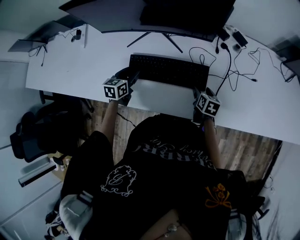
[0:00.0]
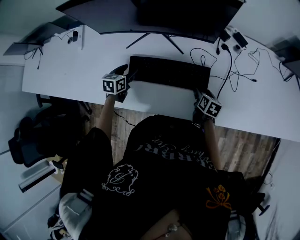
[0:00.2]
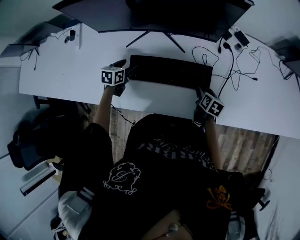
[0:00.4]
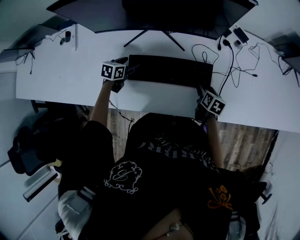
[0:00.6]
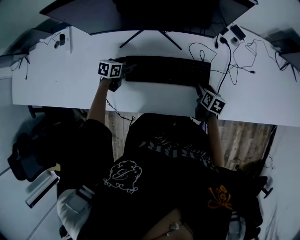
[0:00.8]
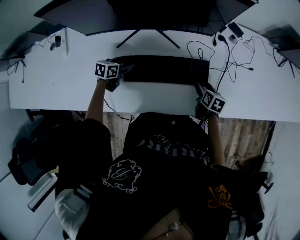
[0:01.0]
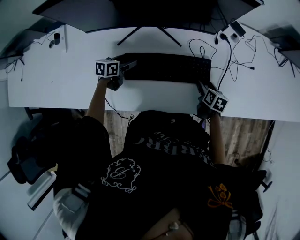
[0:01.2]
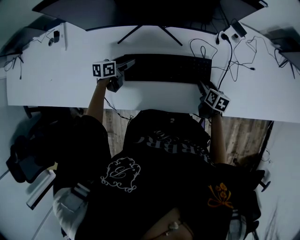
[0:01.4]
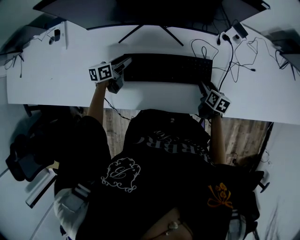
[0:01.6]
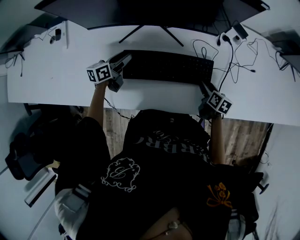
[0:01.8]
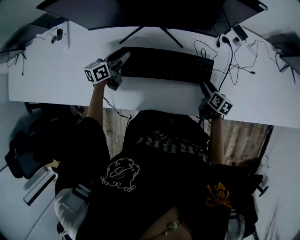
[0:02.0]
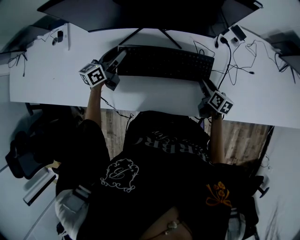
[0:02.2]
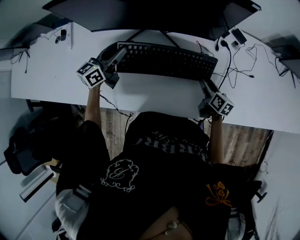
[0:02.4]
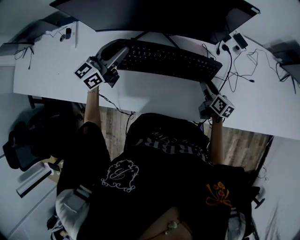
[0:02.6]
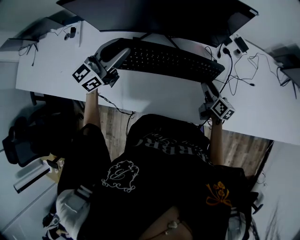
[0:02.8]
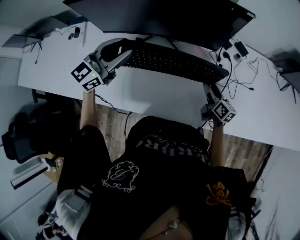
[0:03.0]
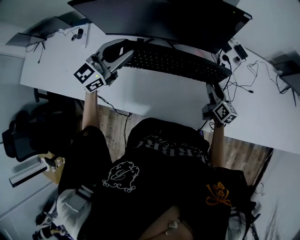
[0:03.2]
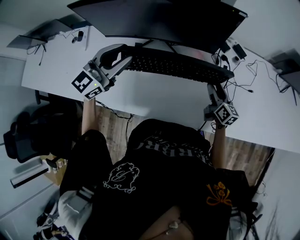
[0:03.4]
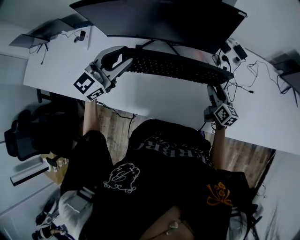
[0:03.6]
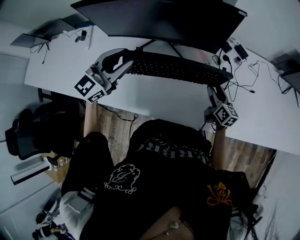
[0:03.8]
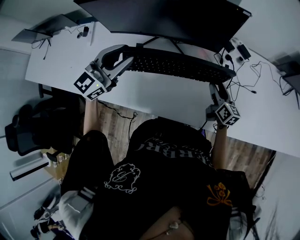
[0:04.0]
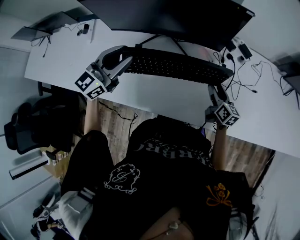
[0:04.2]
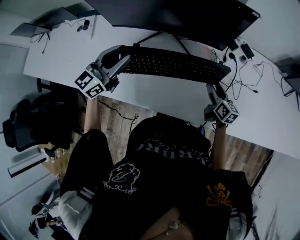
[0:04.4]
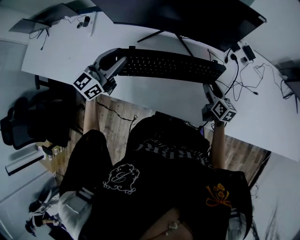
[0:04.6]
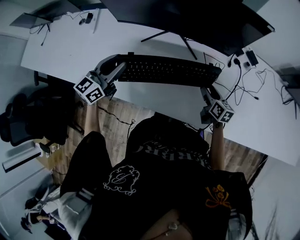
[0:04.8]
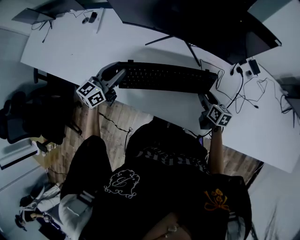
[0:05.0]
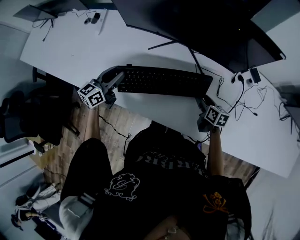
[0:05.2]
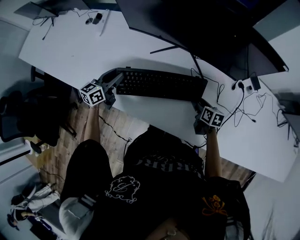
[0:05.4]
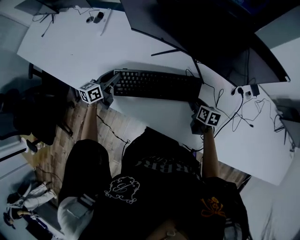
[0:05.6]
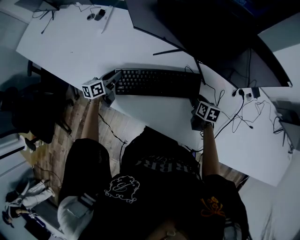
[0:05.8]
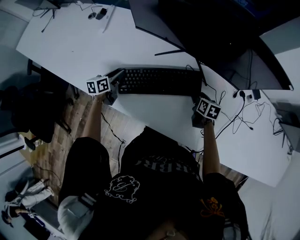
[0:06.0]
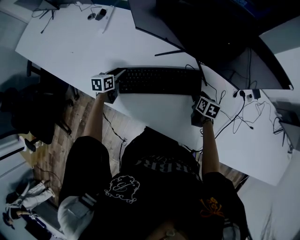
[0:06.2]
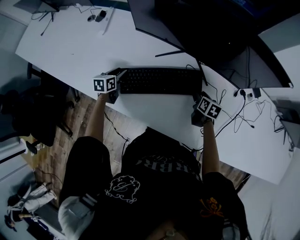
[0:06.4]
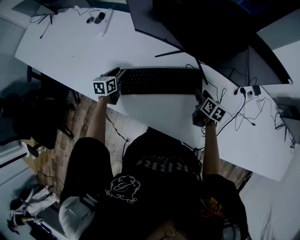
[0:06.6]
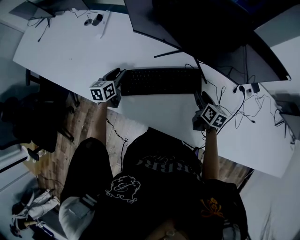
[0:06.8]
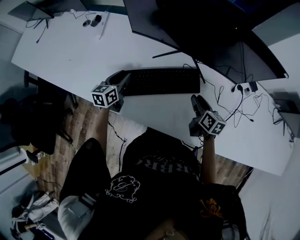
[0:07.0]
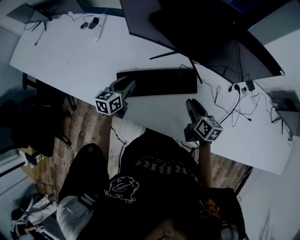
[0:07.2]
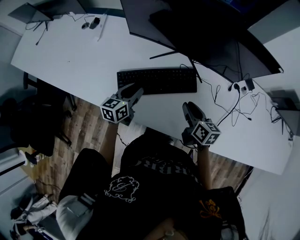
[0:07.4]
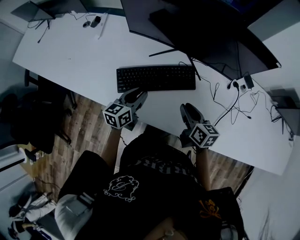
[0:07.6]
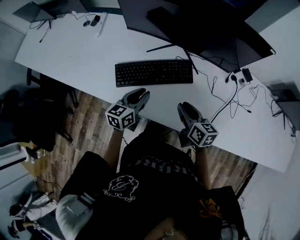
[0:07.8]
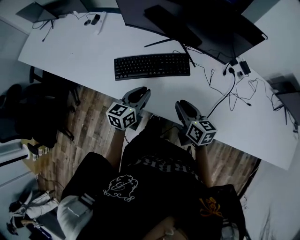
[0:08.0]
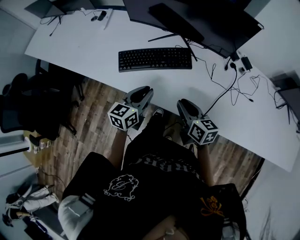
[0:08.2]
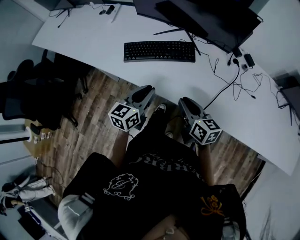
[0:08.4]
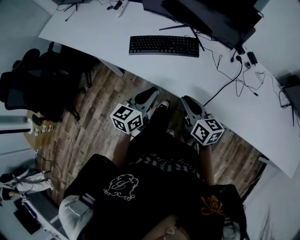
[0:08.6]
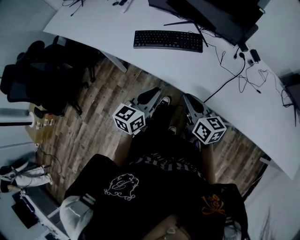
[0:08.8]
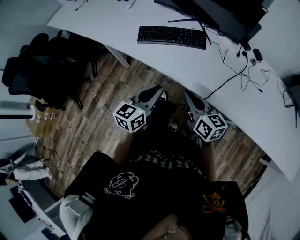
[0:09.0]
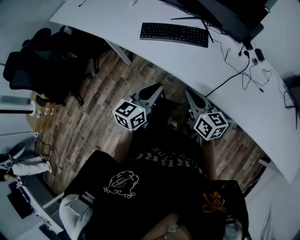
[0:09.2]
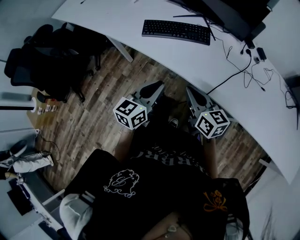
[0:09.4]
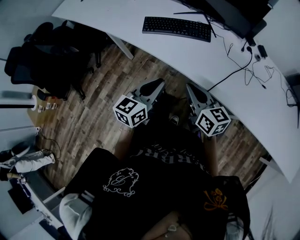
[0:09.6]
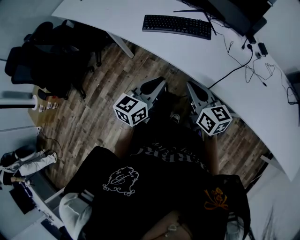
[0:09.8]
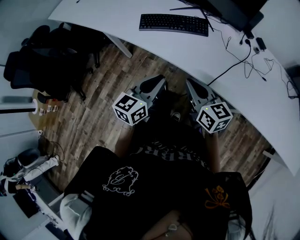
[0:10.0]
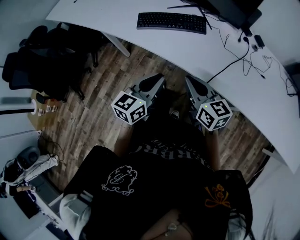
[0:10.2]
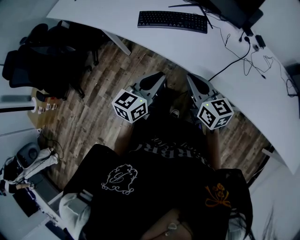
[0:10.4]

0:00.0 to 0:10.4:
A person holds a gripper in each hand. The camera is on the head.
0:00.0 to 0:01.4: The left gripper heads downward, forward and to the left, covering approximately 10 cm, and rotates roughly 30 degrees.
0:01.4 to 0:03.0: The right gripper is displaced upward by approximately 10 cm, and points its fingers approximately 30 degrees further upward. Meanwhile the left gripper travels upward by some 30 cm, rolls clockwise, seen from behind, by some 50 degrees, and closes.
0:03.0 to 0:04.4: The left gripper travels backward by some 5 cm.
0:04.4 to 0:06.0: The right gripper goes some 20 cm to the left, forward and downward, and turns by about 30 degrees; the left gripper heads downward and to the left, covering about 35 cm, and turns by about 50 degrees.
0:06.0 to 0:07.4: The right gripper goes approximately 20 cm upward, backward and to the left, and turns by approximately 20 degrees, while the left gripper heads to the right, upward and backward, covering about 15 cm.
0:07.4 to 0:09.0: The grippers both shift backward by approximately 35 cm. The right gripper swivels some 20 degrees.
0:09.0 to 0:10.4: There are only small adjustments of the grippers.

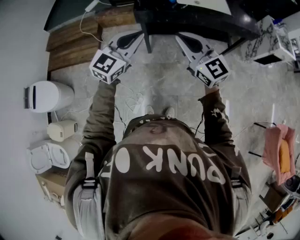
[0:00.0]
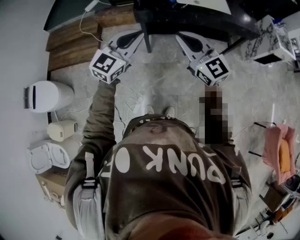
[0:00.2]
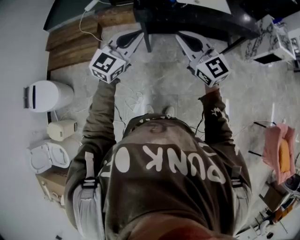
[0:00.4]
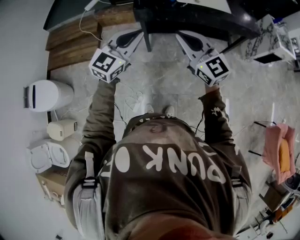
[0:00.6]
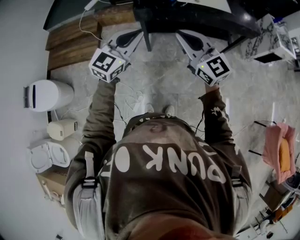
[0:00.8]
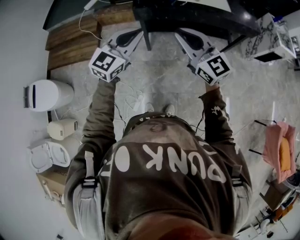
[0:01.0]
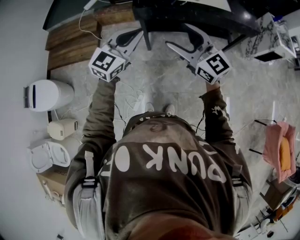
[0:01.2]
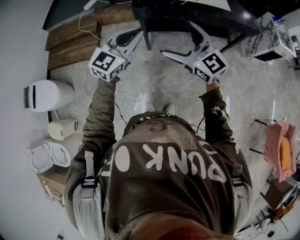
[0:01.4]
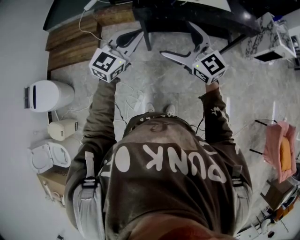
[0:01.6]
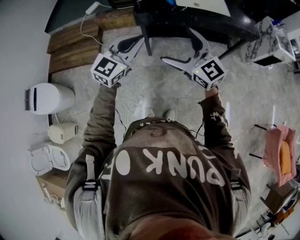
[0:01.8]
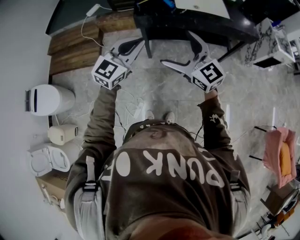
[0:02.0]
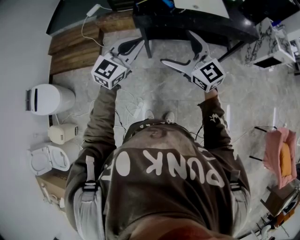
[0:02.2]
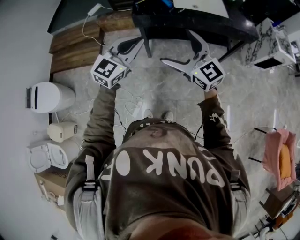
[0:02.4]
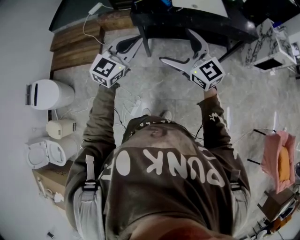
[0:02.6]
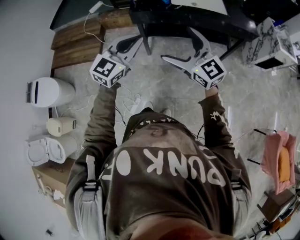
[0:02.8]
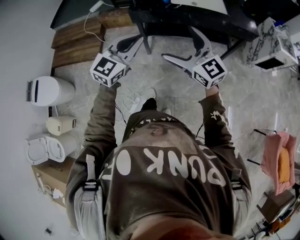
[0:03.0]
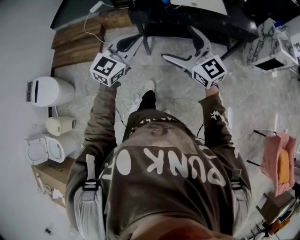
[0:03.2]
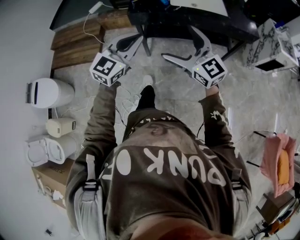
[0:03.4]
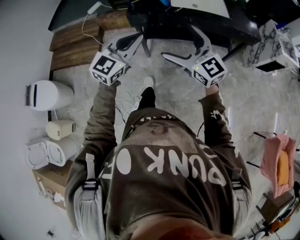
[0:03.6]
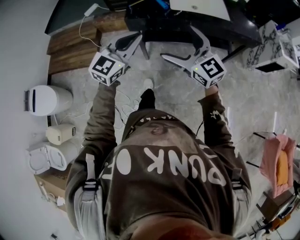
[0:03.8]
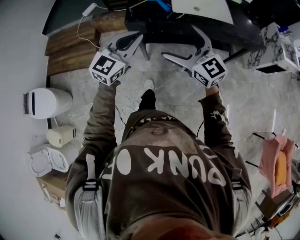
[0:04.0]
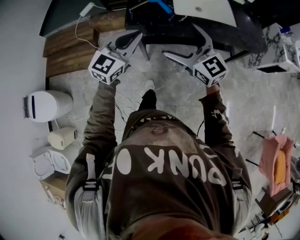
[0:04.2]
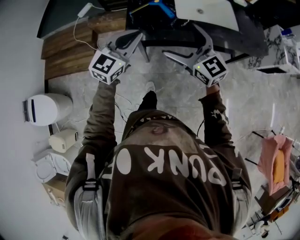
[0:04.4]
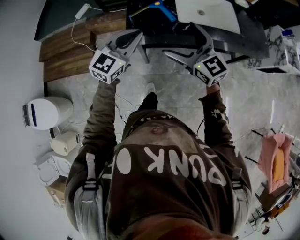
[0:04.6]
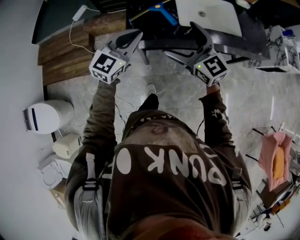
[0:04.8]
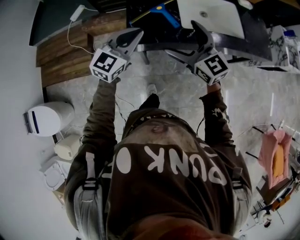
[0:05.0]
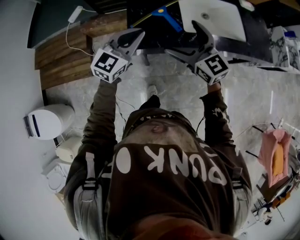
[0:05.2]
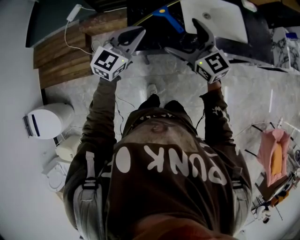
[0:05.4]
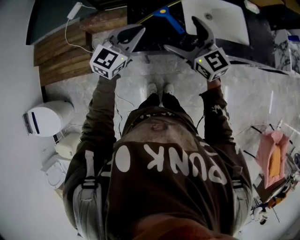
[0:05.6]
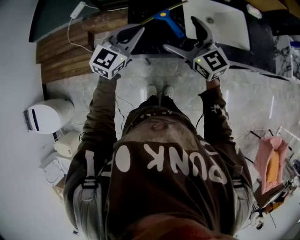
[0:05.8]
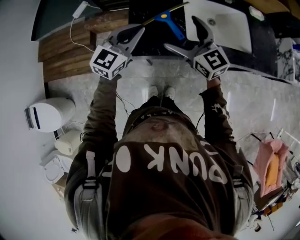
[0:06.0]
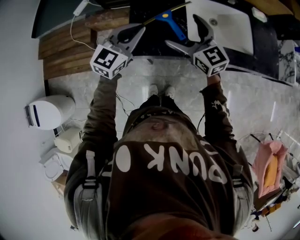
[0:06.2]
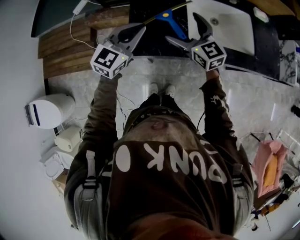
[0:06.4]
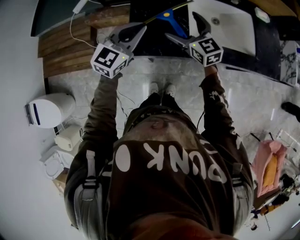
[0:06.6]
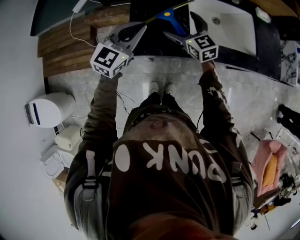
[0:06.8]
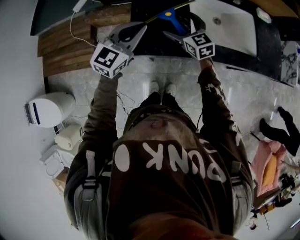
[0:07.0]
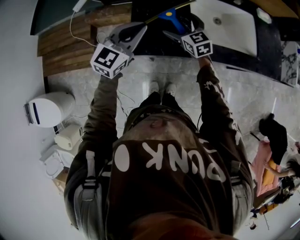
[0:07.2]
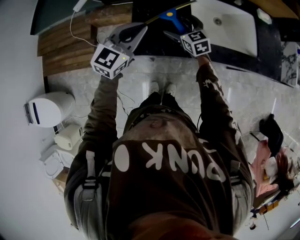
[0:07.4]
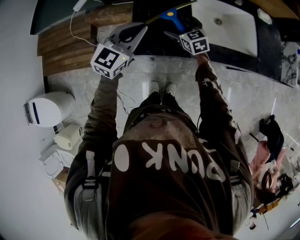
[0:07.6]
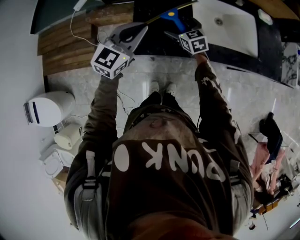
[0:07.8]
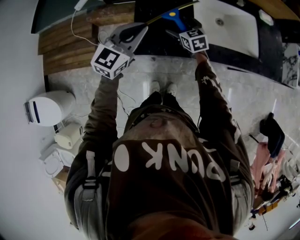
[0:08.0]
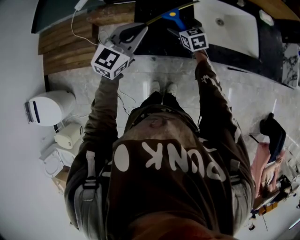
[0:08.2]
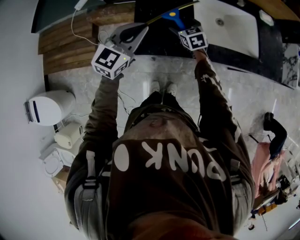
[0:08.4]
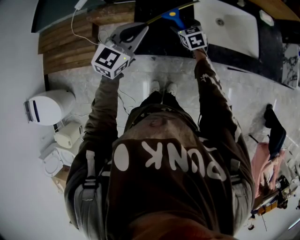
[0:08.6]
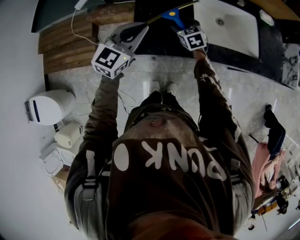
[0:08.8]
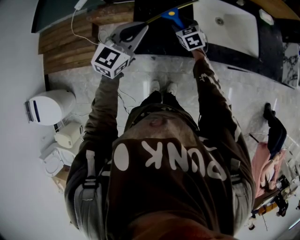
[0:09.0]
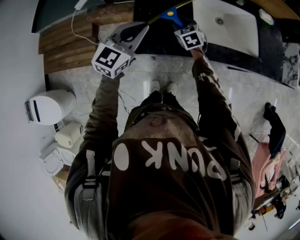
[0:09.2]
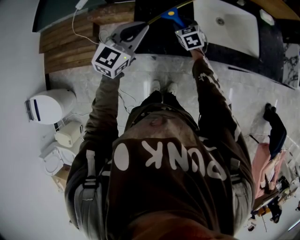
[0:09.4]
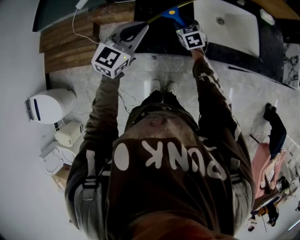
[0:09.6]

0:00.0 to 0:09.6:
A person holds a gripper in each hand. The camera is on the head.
0:00.0 to 0:01.6: The right gripper opens its fingers.
0:01.6 to 0:03.2: Both grippers travel together to the right, approximately 10 cm.
0:03.2 to 0:04.8: Both grippers move forward, approximately 35 cm.
0:04.8 to 0:06.4: The left gripper is displaced forward by approximately 15 cm; the right gripper travels forward and downward by approximately 20 cm.
0:06.4 to 0:08.0: The right gripper goes approximately 15 cm downward, and turns by some 20 degrees.
0:08.0 to 0:09.6: The right gripper closes up.

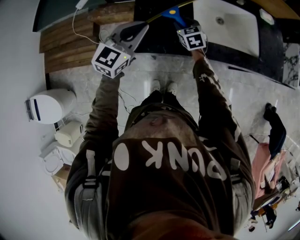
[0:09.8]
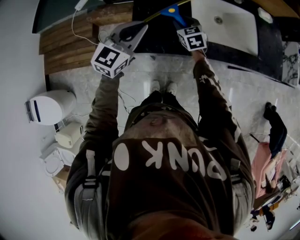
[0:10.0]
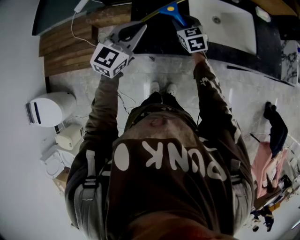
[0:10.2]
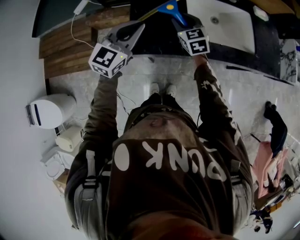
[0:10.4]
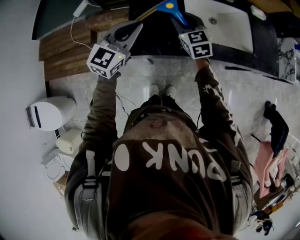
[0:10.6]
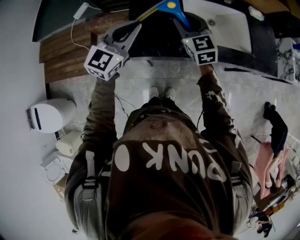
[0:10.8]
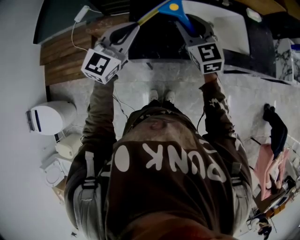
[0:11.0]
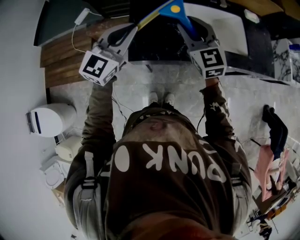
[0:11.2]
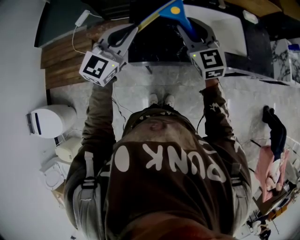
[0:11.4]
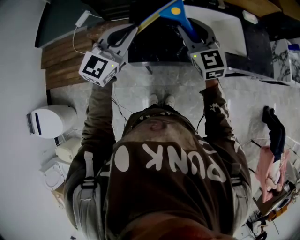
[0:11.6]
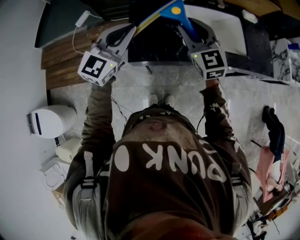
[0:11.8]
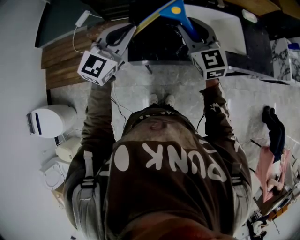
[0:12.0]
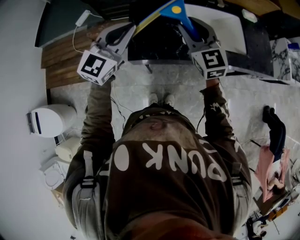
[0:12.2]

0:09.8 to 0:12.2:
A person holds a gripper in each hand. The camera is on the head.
0:09.8 to 0:11.0: The right gripper goes about 25 cm upward, and rotates approximately 30 degrees. Meanwhile the left gripper moves upward, some 10 cm.
0:11.0 to 0:12.2: There are only small adjustments of the grippers.

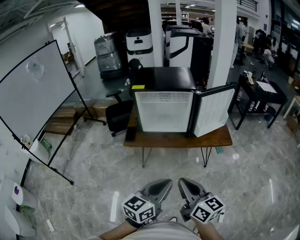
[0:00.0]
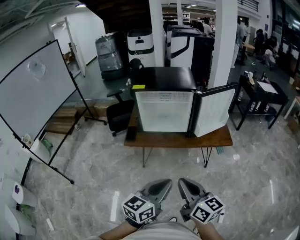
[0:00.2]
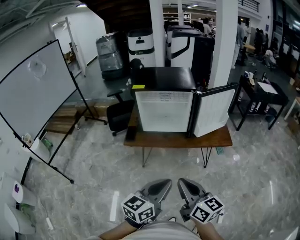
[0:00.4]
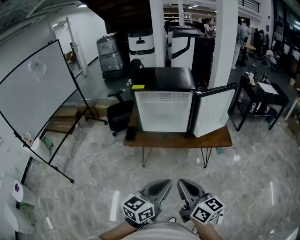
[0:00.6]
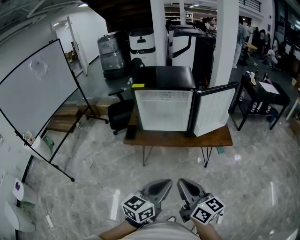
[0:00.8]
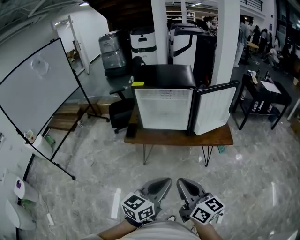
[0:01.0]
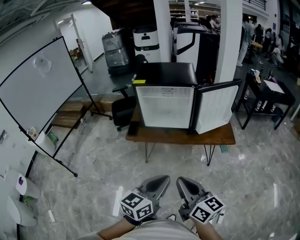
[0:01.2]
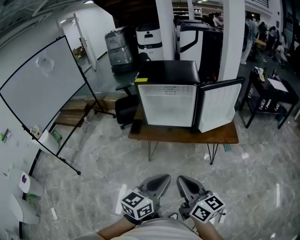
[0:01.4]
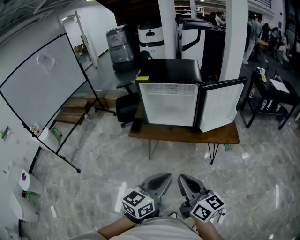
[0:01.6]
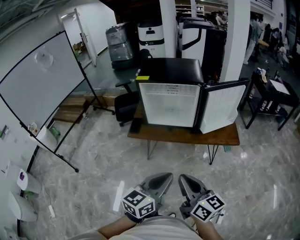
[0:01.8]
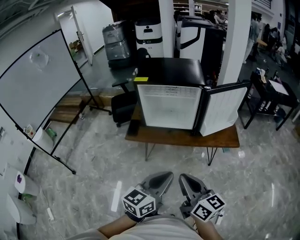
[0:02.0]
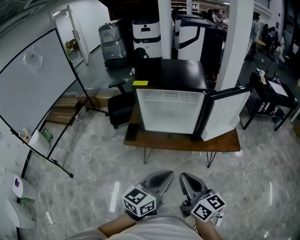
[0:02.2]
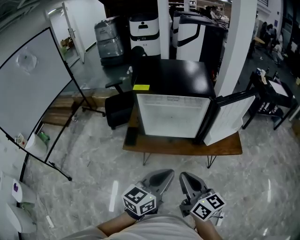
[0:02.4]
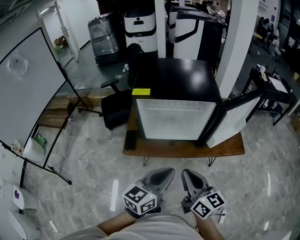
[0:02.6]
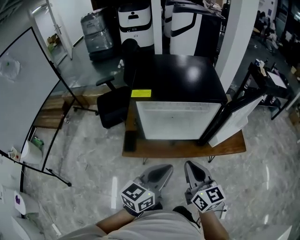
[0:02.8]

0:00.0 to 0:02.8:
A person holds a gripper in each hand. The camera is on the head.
0:00.0 to 0:01.4: The grippers make only small movements.
0:01.4 to 0:02.8: The left gripper heads forward and to the left, covering roughly 30 cm, while the right gripper shifts some 30 cm forward, and changes its angle by about 20 degrees.
